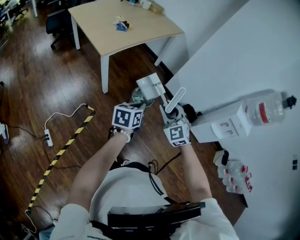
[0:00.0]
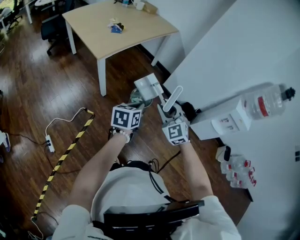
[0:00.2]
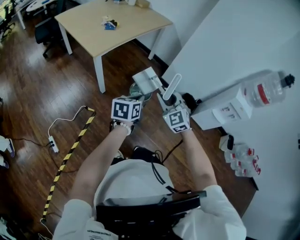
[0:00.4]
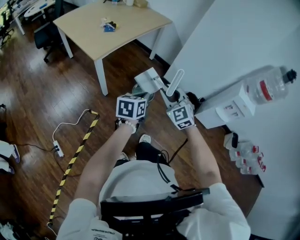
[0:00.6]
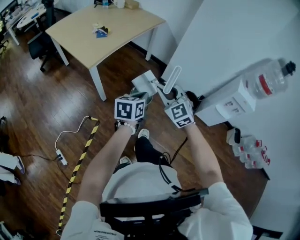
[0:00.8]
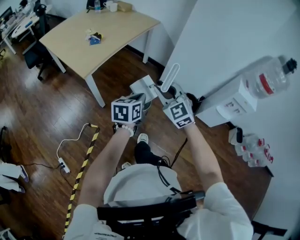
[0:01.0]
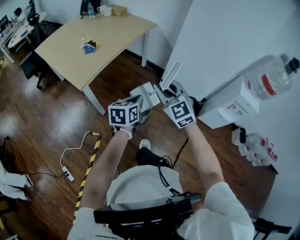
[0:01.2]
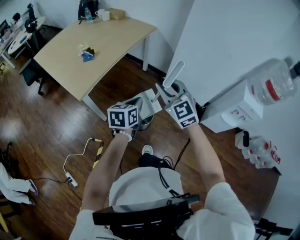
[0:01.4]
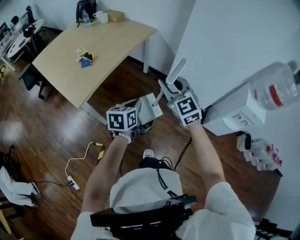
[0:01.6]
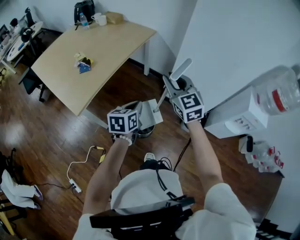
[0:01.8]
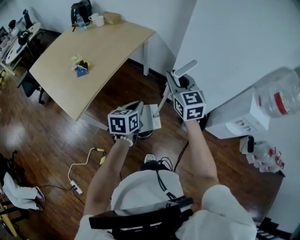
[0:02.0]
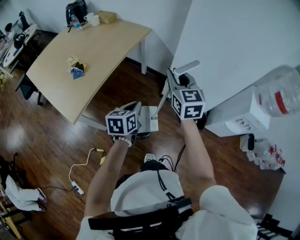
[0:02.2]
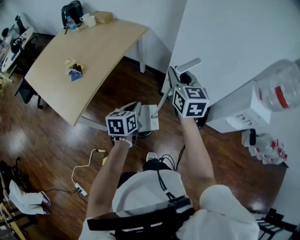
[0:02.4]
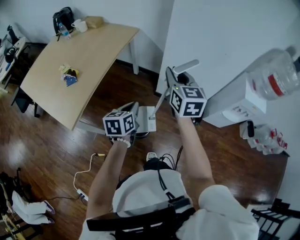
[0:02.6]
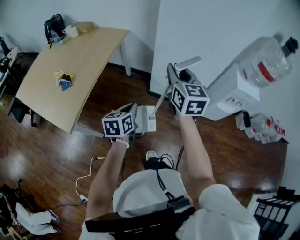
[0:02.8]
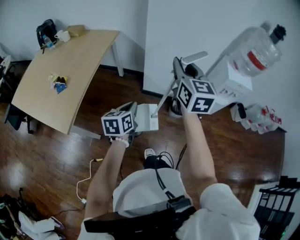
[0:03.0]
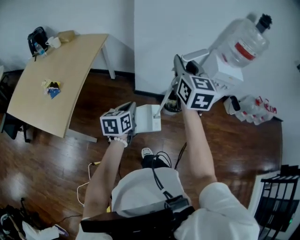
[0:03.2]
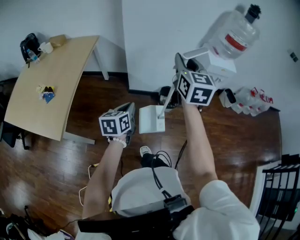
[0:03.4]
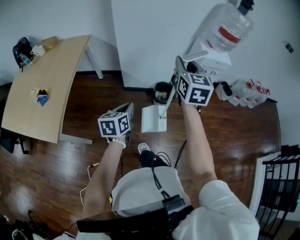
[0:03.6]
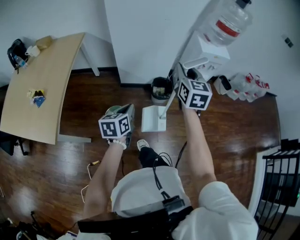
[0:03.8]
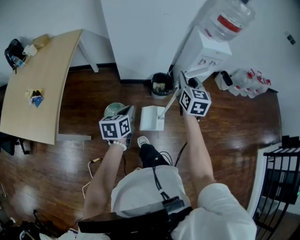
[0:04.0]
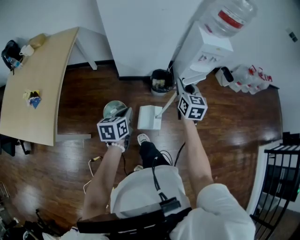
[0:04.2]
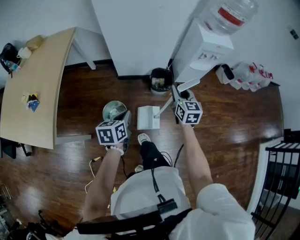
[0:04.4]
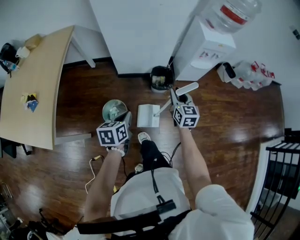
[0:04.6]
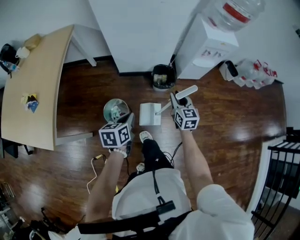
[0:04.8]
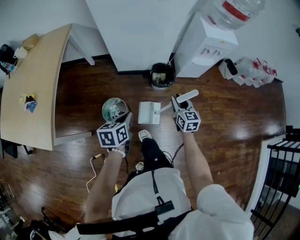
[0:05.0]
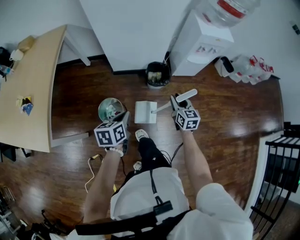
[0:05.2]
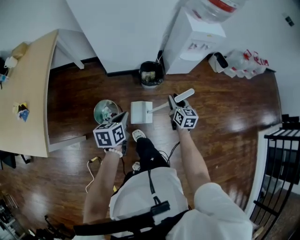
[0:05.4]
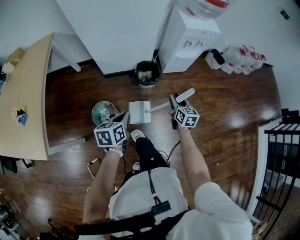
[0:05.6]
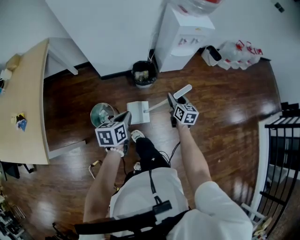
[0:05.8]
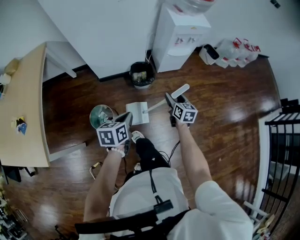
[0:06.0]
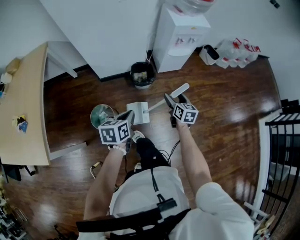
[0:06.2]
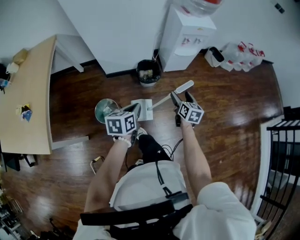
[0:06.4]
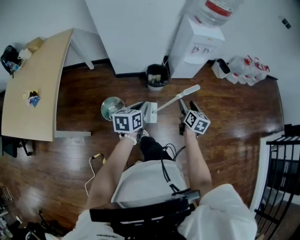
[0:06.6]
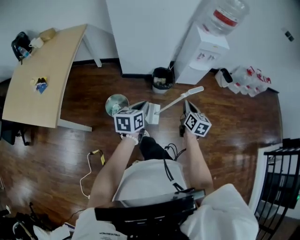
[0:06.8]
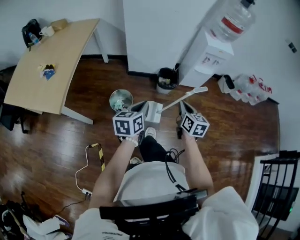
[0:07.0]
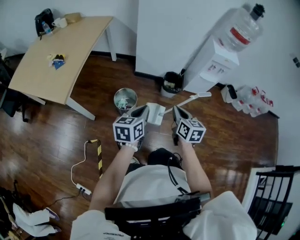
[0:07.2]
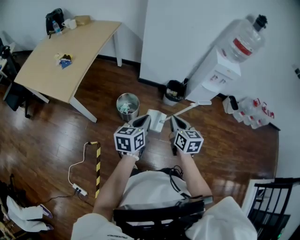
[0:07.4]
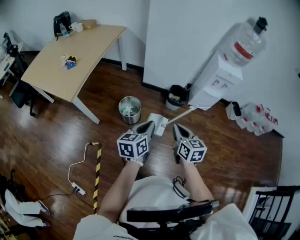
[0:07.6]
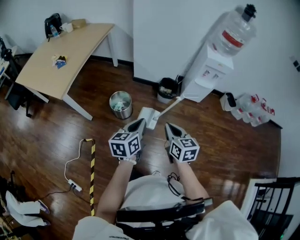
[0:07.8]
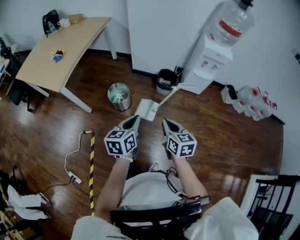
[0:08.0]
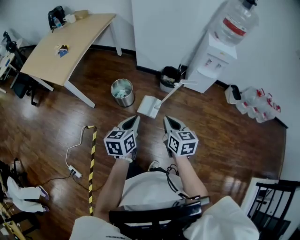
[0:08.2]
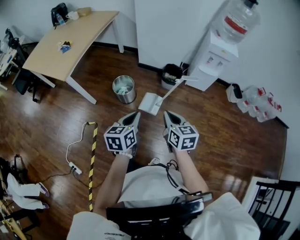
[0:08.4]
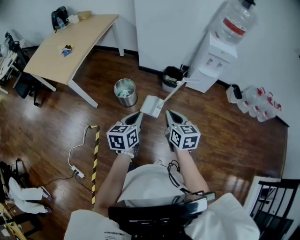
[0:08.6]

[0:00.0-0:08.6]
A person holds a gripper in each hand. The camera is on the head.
0:00.0 to 0:01.4: The right gripper moves forward and upward, approximately 25 cm; the left gripper is displaced forward by about 25 cm.
0:01.4 to 0:02.8: The left gripper heads forward, covering about 10 cm. The right gripper heads forward, to the right and upward, covering roughly 20 cm, and changes its angle by roughly 50 degrees.
0:02.8 to 0:04.4: The right gripper travels to the right and downward by about 35 cm, and turns by roughly 20 degrees. The left gripper heads to the right and downward, covering some 20 cm, and swivels roughly 20 degrees.
0:04.4 to 0:05.8: The left gripper moves to the right, approximately 10 cm. The right gripper is displaced downward and to the right by some 20 cm, and turns by about 20 degrees.
0:05.8 to 0:07.2: The right gripper shifts approximately 30 cm backward, upward and to the left, swivels roughly 20 degrees, and closes its fingers; the left gripper shifts approximately 20 cm backward and upward, and rotates about 20 degrees.
0:07.2 to 0:08.6: Both grippers travel together backward and to the right, approximately 20 cm.

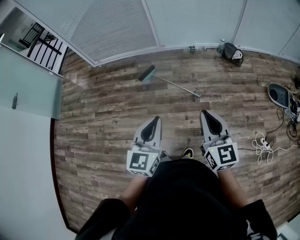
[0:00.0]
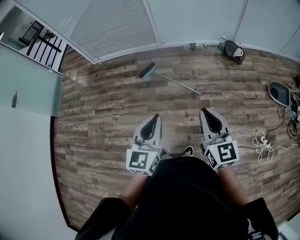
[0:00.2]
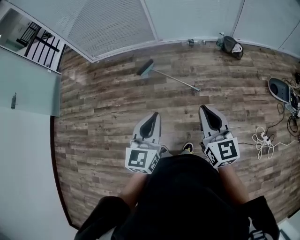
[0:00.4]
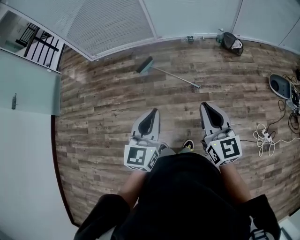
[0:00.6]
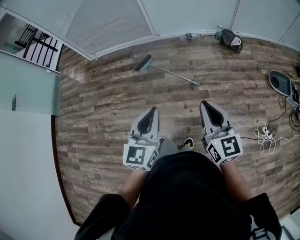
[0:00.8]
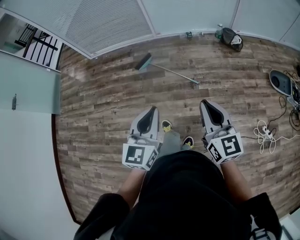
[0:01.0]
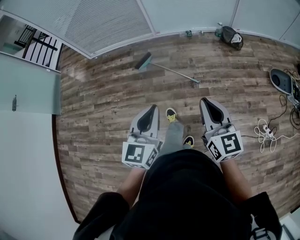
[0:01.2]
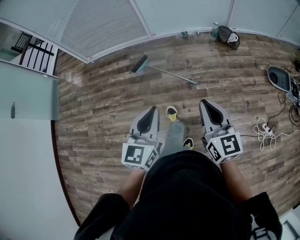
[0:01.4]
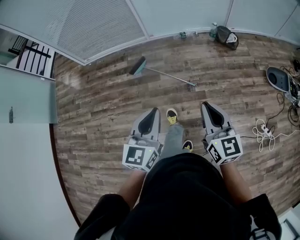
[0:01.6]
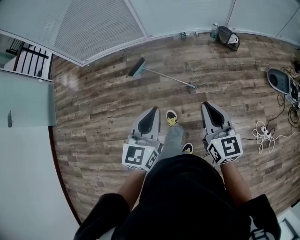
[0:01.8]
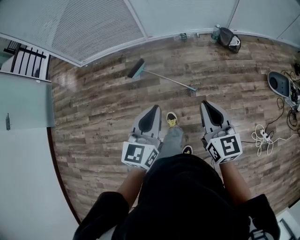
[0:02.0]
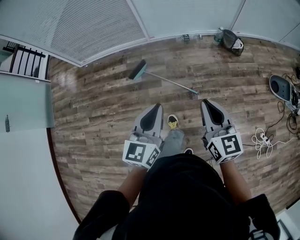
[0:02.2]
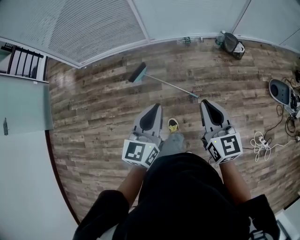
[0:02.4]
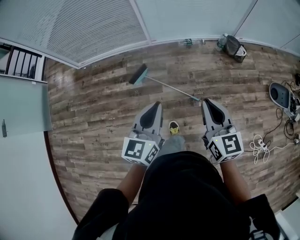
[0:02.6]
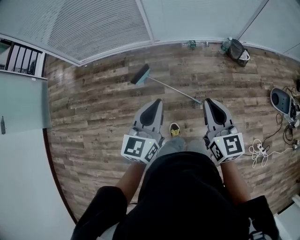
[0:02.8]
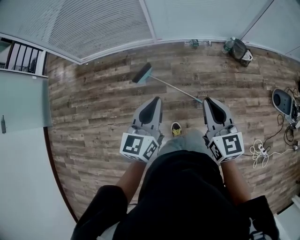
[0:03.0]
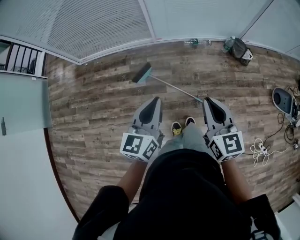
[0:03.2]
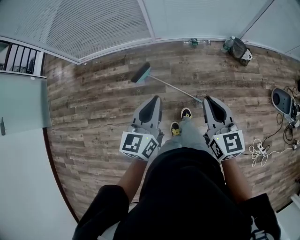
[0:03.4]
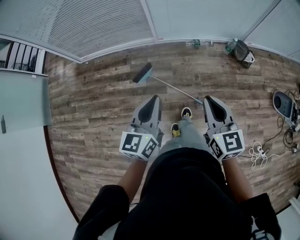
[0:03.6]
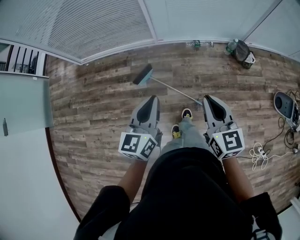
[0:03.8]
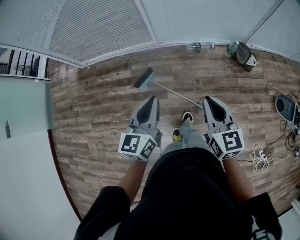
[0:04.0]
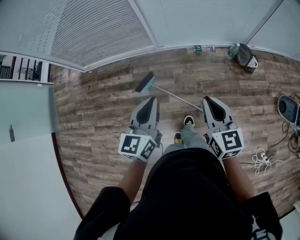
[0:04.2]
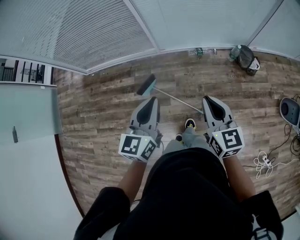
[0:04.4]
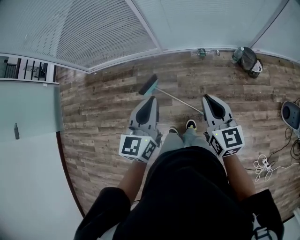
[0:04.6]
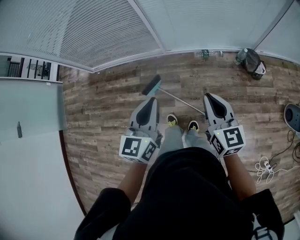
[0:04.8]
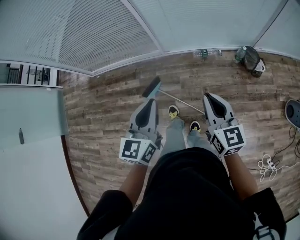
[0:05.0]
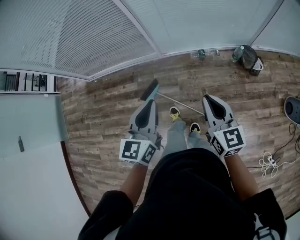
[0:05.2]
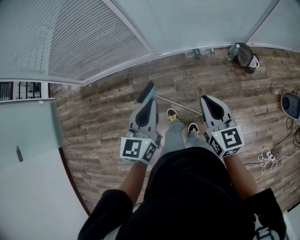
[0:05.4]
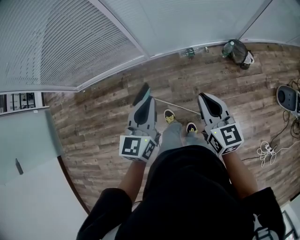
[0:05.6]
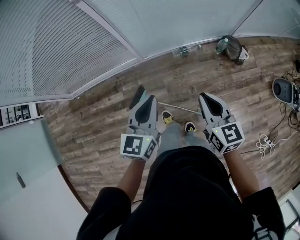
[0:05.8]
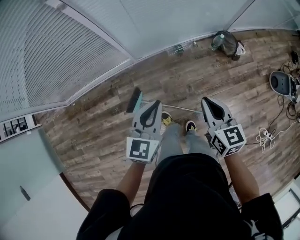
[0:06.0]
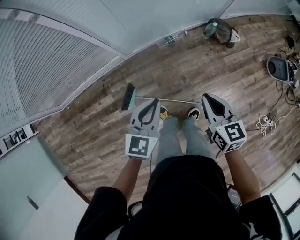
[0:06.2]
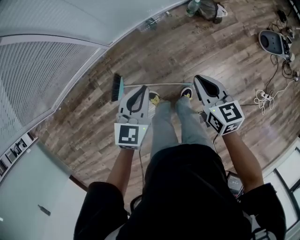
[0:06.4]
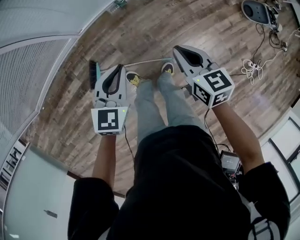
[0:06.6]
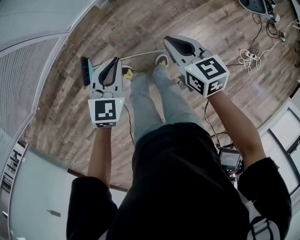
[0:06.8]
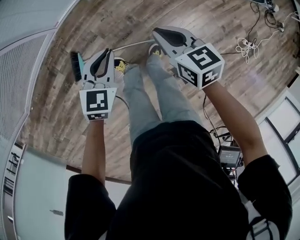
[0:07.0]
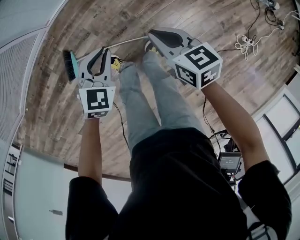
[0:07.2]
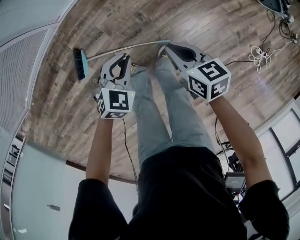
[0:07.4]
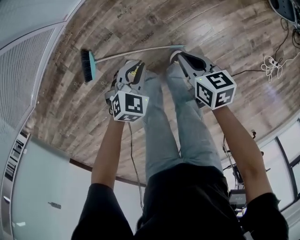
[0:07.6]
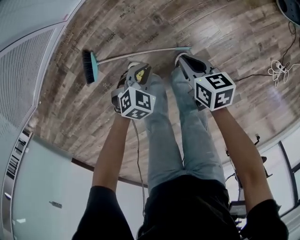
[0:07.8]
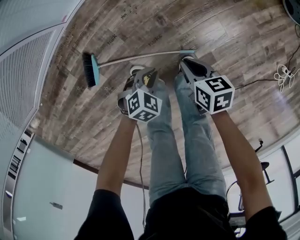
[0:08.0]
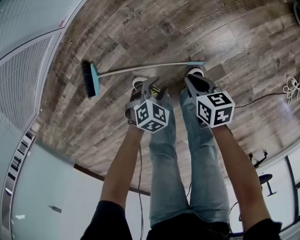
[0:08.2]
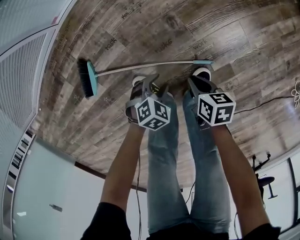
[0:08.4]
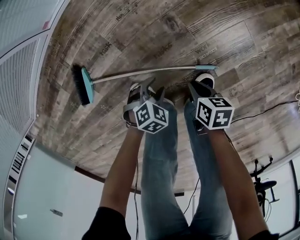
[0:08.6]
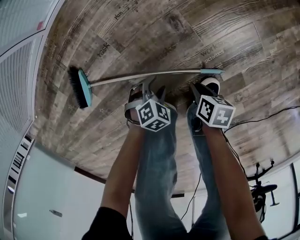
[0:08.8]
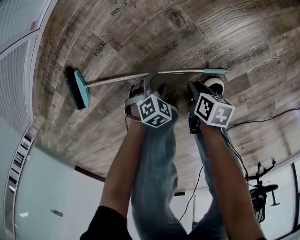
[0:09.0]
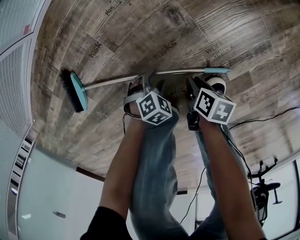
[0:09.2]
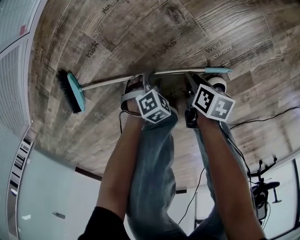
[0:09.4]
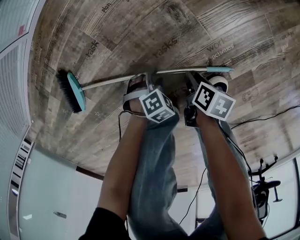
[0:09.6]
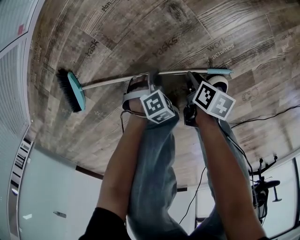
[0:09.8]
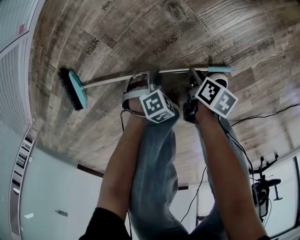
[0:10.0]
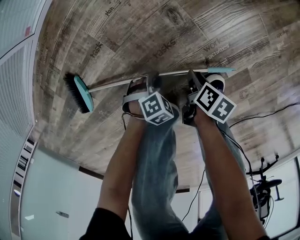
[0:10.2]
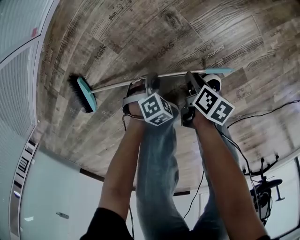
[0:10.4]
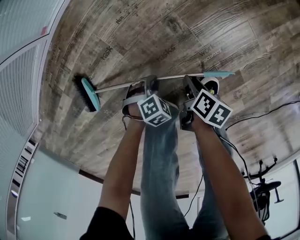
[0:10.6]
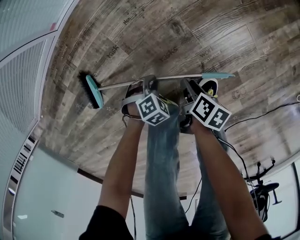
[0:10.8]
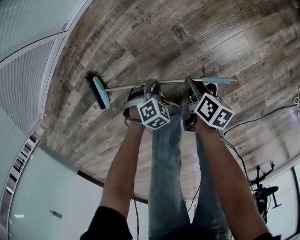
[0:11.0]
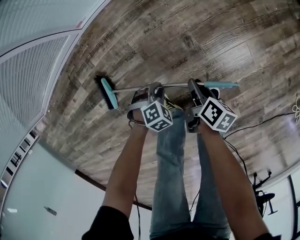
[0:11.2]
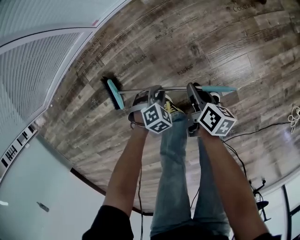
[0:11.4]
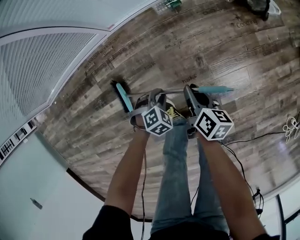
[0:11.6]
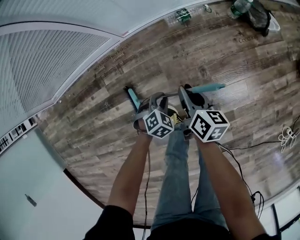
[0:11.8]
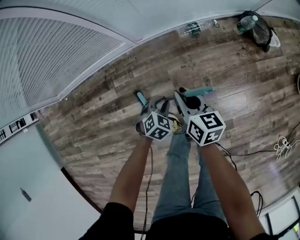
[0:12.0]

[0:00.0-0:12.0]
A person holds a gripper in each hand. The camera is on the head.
0:00.0 to 0:01.6: The two grippers go some 10 cm forward and to the right.
0:01.6 to 0:03.0: The grippers both shift forward by approximately 30 cm.
0:03.0 to 0:04.4: The left gripper heads forward, covering about 15 cm. Meanwhile the right gripper shifts roughly 20 cm forward and to the right.
0:04.4 to 0:06.0: Both grippers move forward and downward, roughly 20 cm. The left gripper turns by some 20 degrees.
0:06.0 to 0:07.6: The two grippers go roughly 40 cm downward. The right gripper swivels approximately 30 degrees. The left gripper points its fingers approximately 30 degrees further downward.
0:07.6 to 0:09.0: The two grippers go approximately 50 cm downward. The right gripper turns by some 40 degrees. Meanwhile the left gripper swivels approximately 30 degrees, and opens its fingers.
0:09.0 to 0:10.4: The left gripper closes up.
0:10.4 to 0:12.0: The grippers both shift upward by approximately 40 cm. The right gripper points its fingers about 40 degrees further upward, while the left gripper turns by approximately 40 degrees.

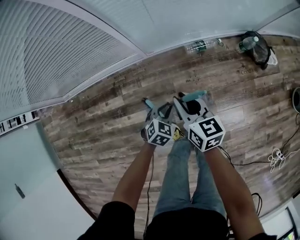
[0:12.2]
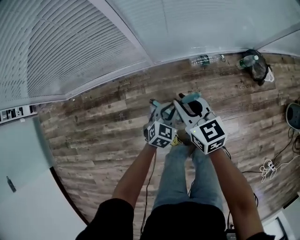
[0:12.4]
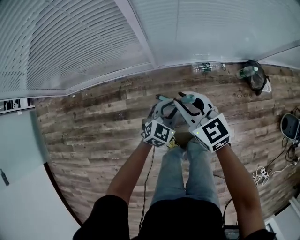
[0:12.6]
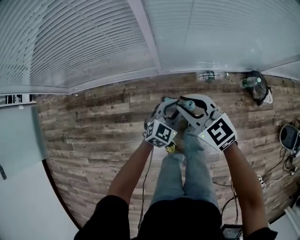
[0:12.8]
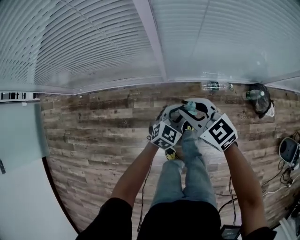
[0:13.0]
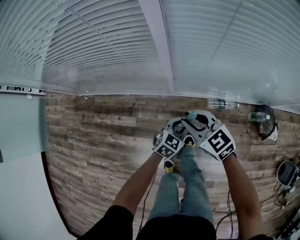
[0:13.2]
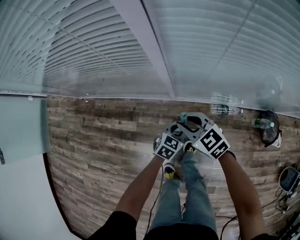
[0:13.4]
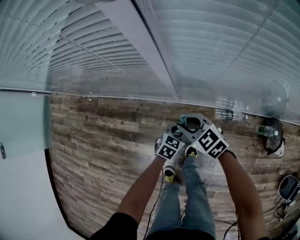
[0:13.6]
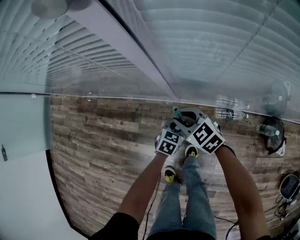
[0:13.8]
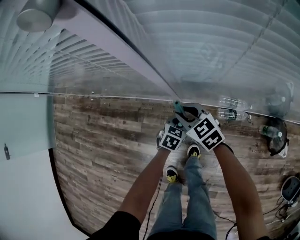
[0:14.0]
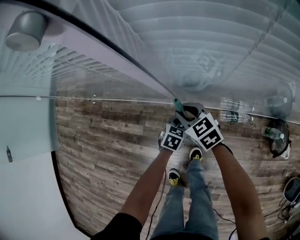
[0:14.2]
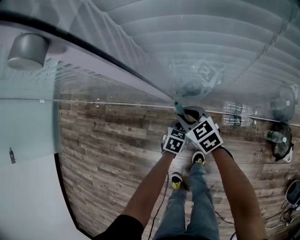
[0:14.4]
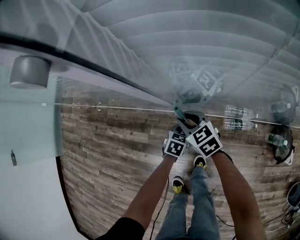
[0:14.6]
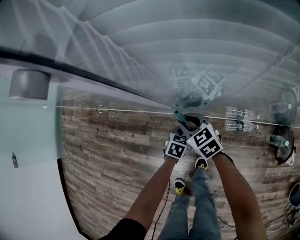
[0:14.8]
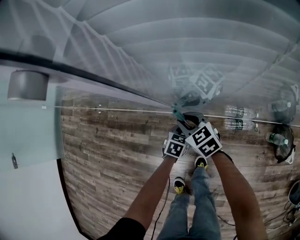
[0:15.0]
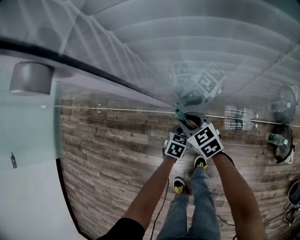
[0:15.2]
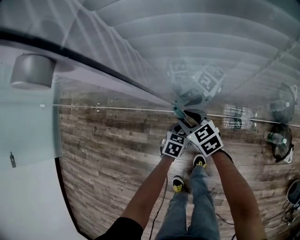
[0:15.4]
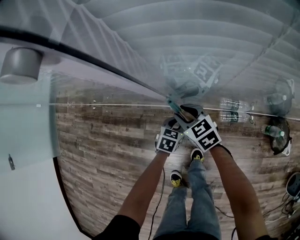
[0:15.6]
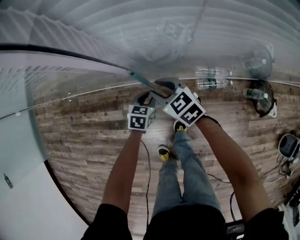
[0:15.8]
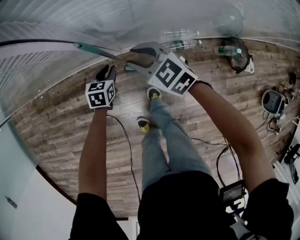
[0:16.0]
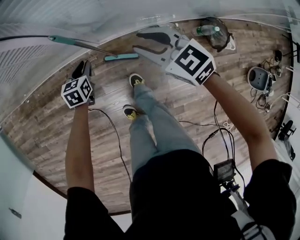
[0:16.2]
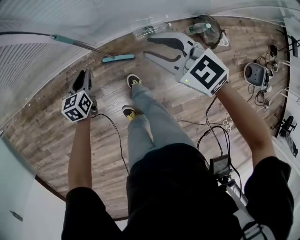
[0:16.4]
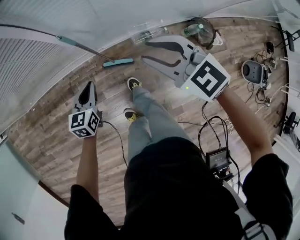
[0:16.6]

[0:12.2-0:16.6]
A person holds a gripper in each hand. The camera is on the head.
0:12.2 to 0:13.6: The right gripper reaches roughly 15 cm upward, then returns, and swivels about 60 degrees, while the left gripper moves about 15 cm upward and comes back, and turns by some 30 degrees.
0:13.6 to 0:15.2: The grippers both shift forward by some 10 cm.
0:15.2 to 0:16.6: The left gripper moves upward and backward, about 25 cm, and rotates roughly 20 degrees; the right gripper goes approximately 40 cm upward, backward and to the right.
